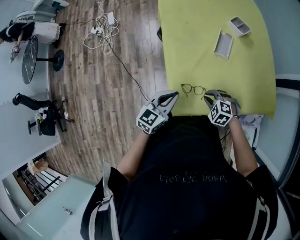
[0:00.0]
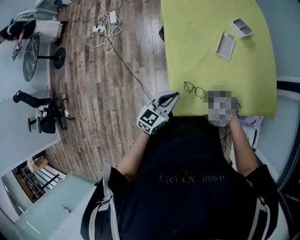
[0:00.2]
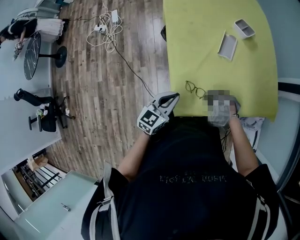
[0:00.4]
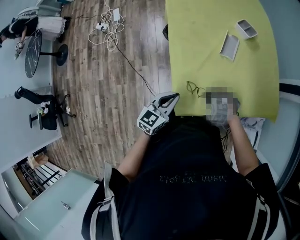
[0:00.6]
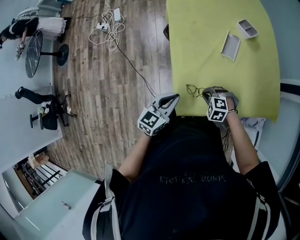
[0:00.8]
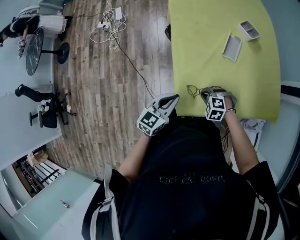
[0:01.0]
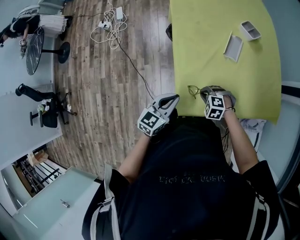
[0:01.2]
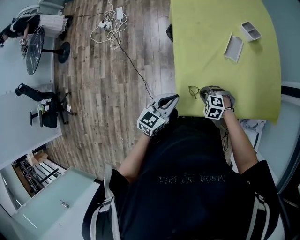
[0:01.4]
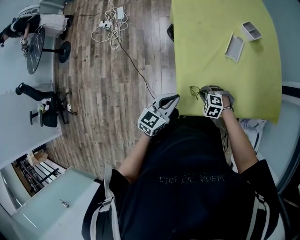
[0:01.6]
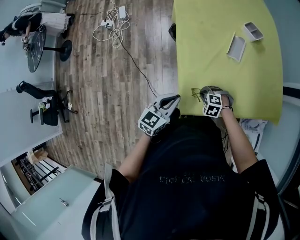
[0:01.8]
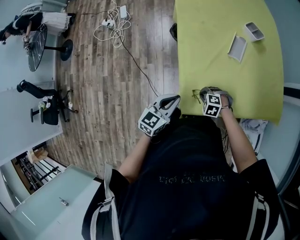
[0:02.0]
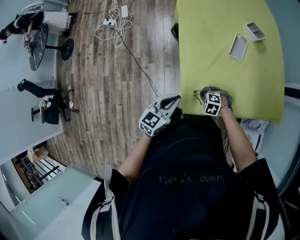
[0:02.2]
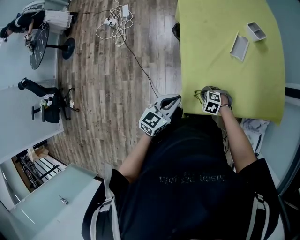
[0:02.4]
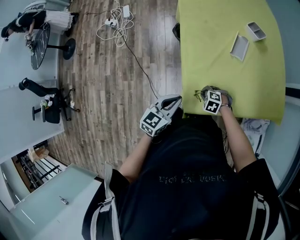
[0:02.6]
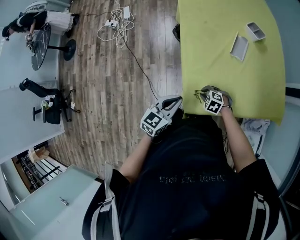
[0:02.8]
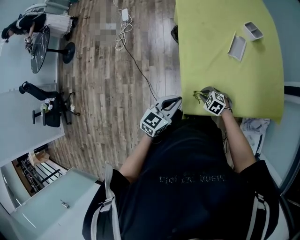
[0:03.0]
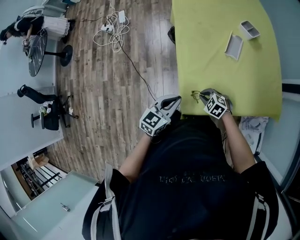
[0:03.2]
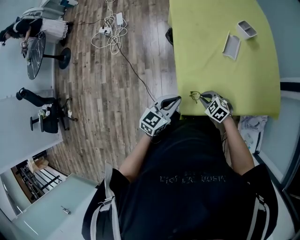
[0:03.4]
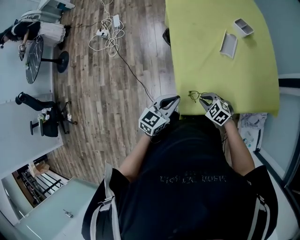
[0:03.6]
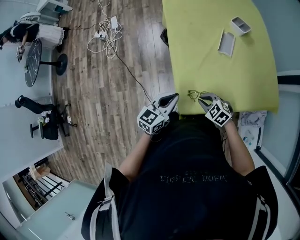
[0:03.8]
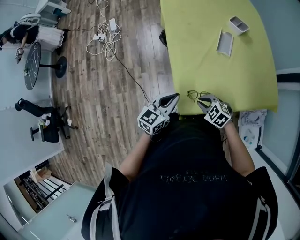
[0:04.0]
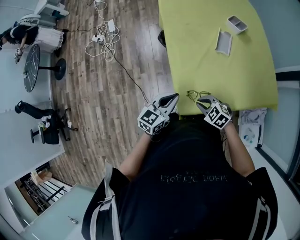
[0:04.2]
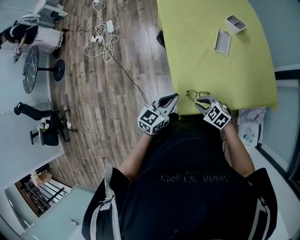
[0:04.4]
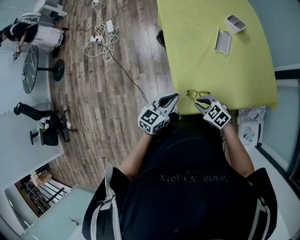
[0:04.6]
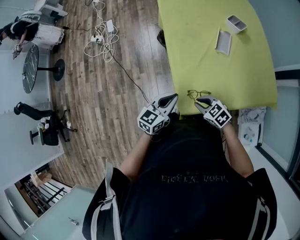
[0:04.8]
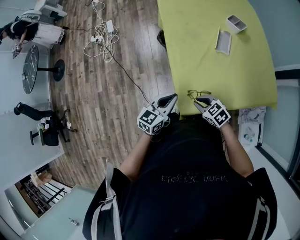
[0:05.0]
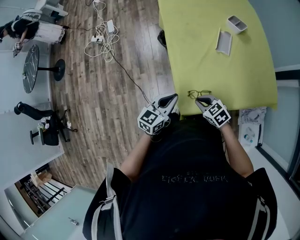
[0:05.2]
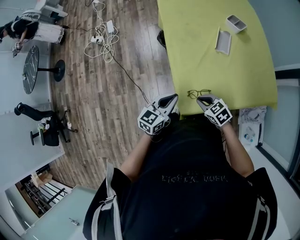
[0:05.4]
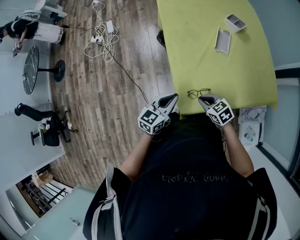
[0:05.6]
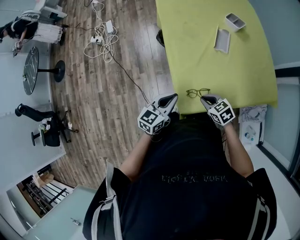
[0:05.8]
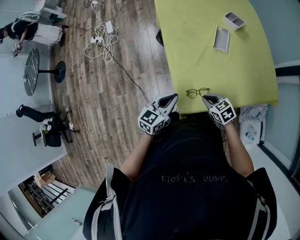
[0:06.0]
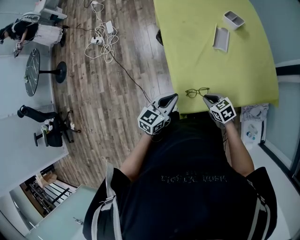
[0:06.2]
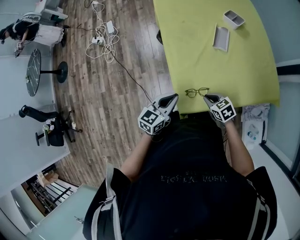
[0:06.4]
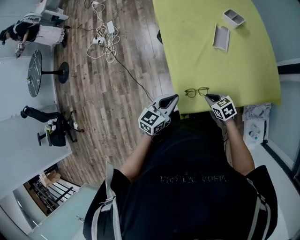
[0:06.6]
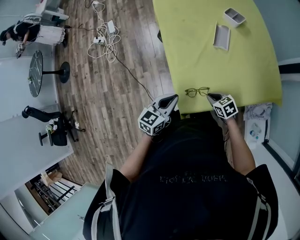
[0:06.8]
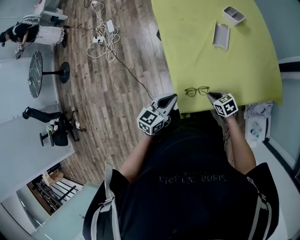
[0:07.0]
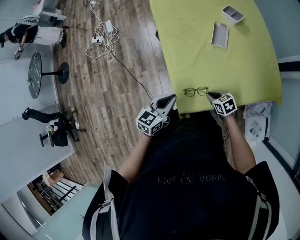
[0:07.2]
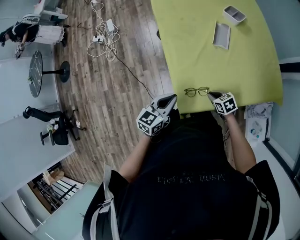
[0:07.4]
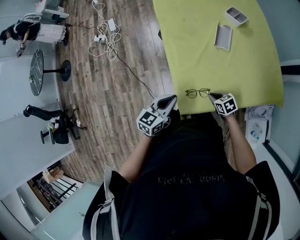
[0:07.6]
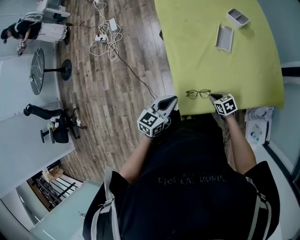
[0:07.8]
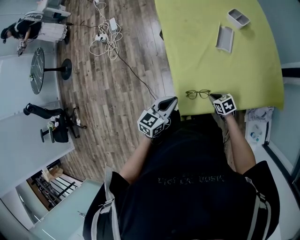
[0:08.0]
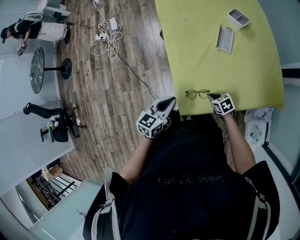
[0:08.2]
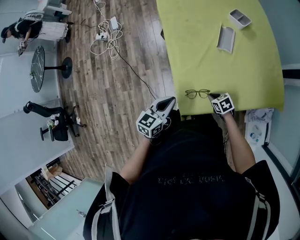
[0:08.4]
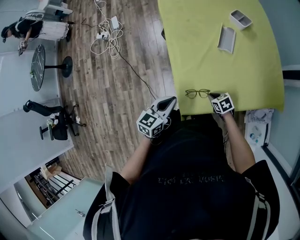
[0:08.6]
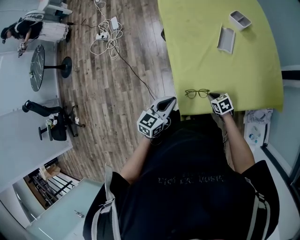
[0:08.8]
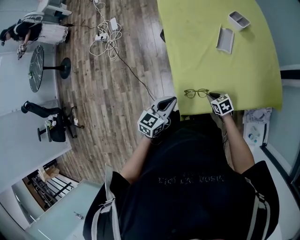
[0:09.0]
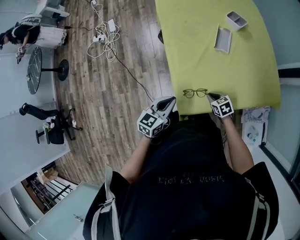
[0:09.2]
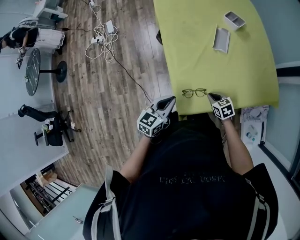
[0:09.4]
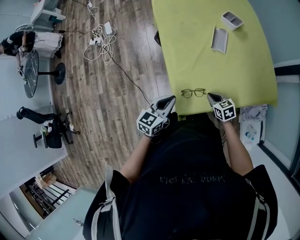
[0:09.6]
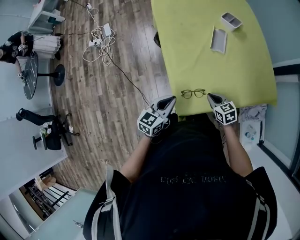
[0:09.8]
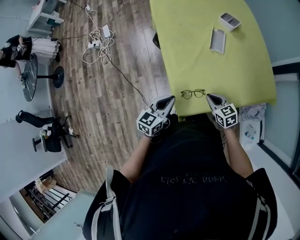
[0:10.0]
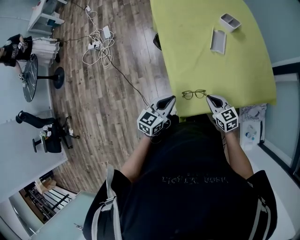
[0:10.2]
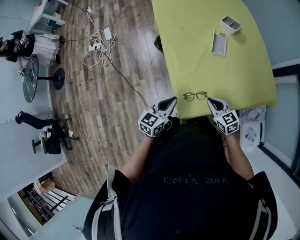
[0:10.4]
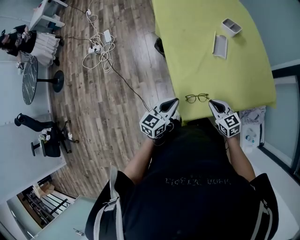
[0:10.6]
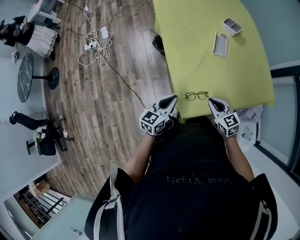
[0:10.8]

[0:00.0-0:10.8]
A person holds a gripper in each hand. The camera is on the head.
0:00.0 to 0:01.6: The right gripper moves to the left and downward, approximately 10 cm.
0:01.6 to 0:03.0: The grippers make only small movements.
0:03.0 to 0:04.6: The right gripper heads upward, covering some 10 cm, and changes its angle by roughly 20 degrees.
0:04.6 to 0:06.2: The right gripper heads to the right, covering approximately 5 cm, and rotates approximately 20 degrees.
0:06.2 to 0:07.8: The right gripper moves downward, some 10 cm.
0:07.8 to 0:09.2: There are only small adjustments of the grippers.
0:09.2 to 0:10.8: The right gripper moves upward, approximately 15 cm, and rotates roughly 30 degrees.

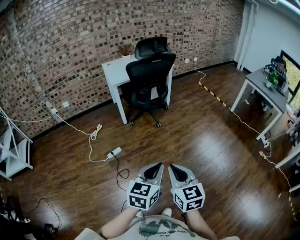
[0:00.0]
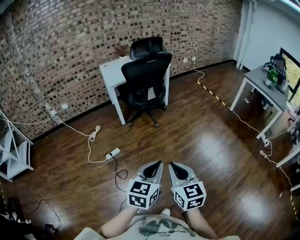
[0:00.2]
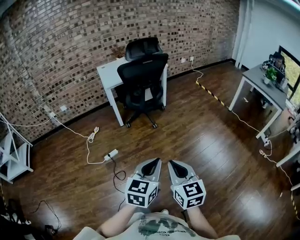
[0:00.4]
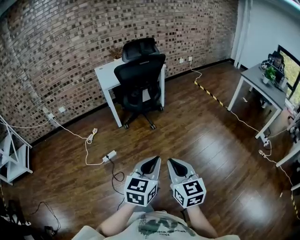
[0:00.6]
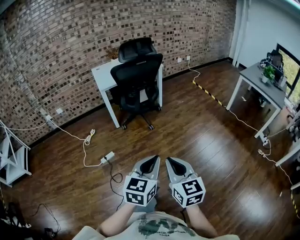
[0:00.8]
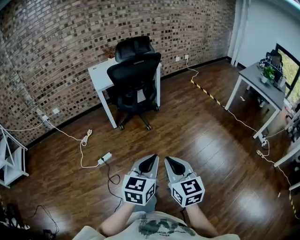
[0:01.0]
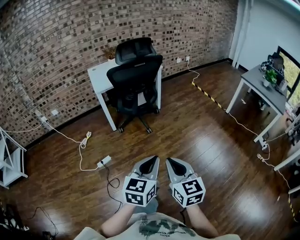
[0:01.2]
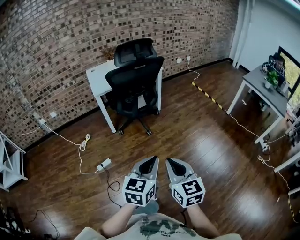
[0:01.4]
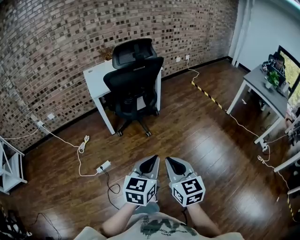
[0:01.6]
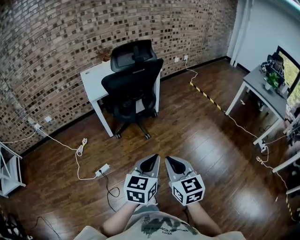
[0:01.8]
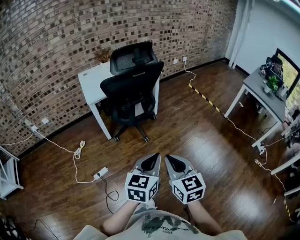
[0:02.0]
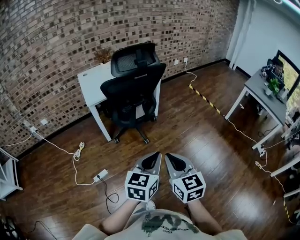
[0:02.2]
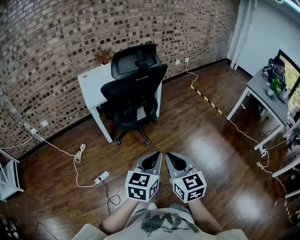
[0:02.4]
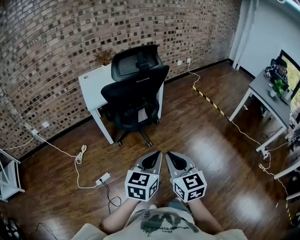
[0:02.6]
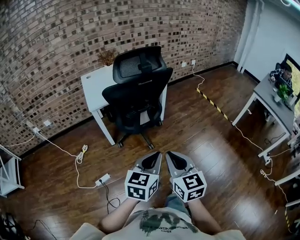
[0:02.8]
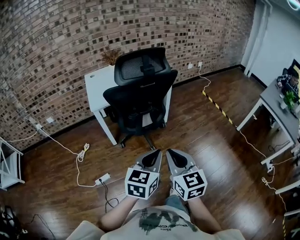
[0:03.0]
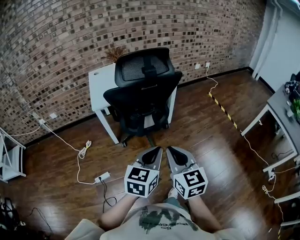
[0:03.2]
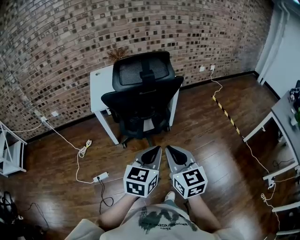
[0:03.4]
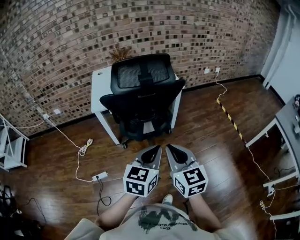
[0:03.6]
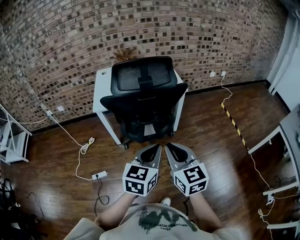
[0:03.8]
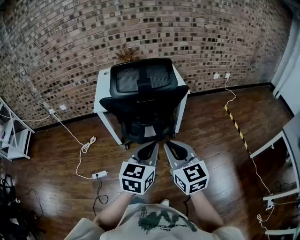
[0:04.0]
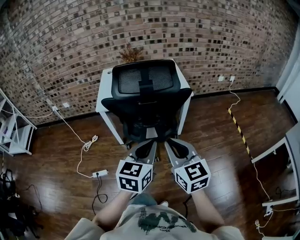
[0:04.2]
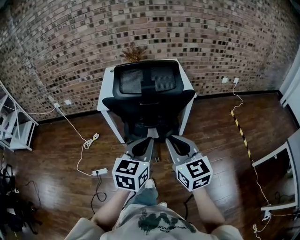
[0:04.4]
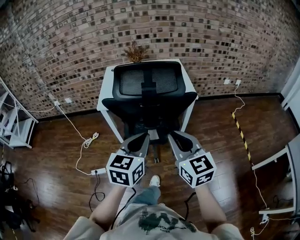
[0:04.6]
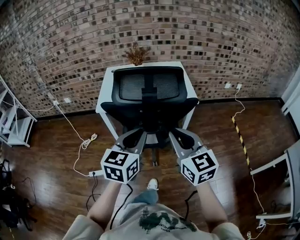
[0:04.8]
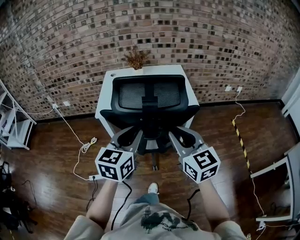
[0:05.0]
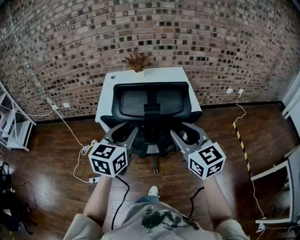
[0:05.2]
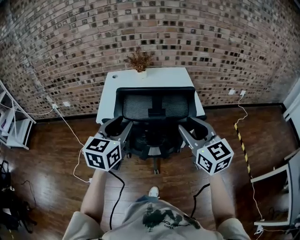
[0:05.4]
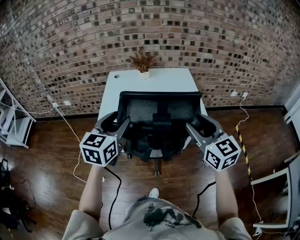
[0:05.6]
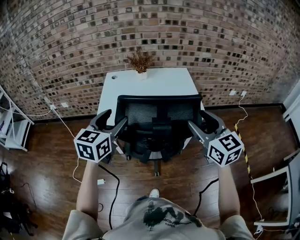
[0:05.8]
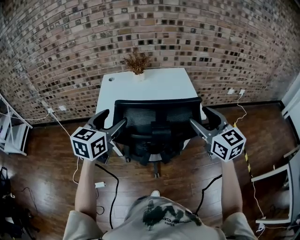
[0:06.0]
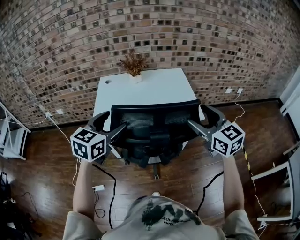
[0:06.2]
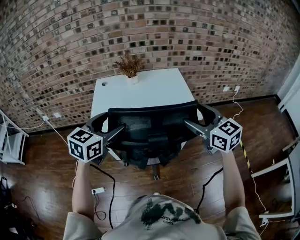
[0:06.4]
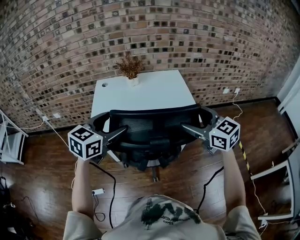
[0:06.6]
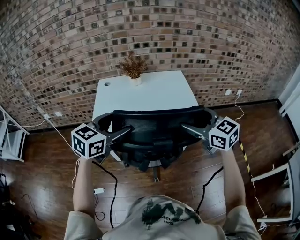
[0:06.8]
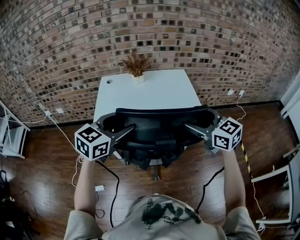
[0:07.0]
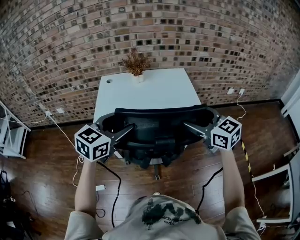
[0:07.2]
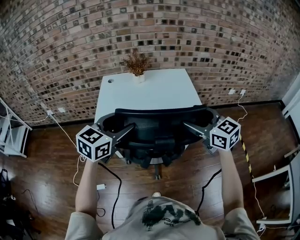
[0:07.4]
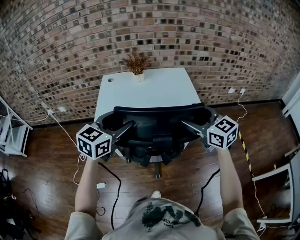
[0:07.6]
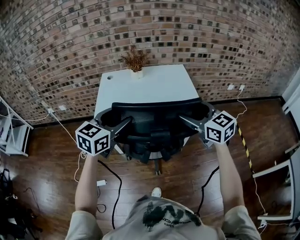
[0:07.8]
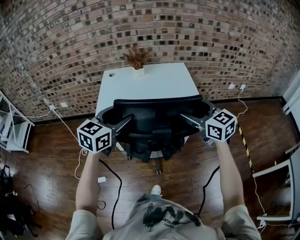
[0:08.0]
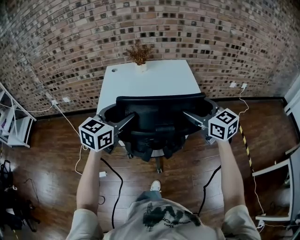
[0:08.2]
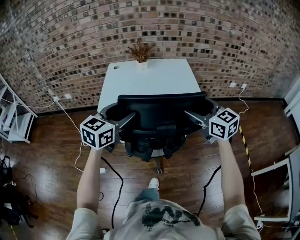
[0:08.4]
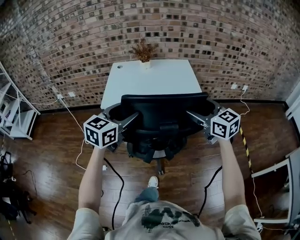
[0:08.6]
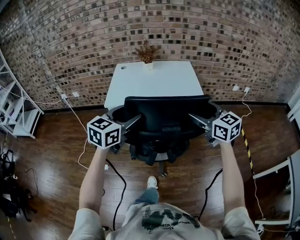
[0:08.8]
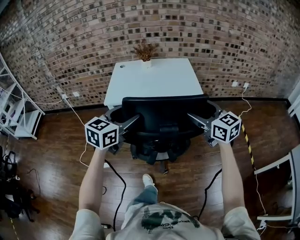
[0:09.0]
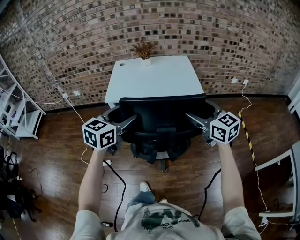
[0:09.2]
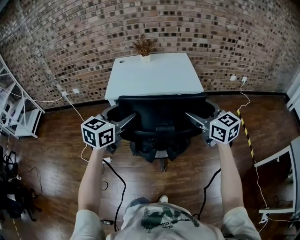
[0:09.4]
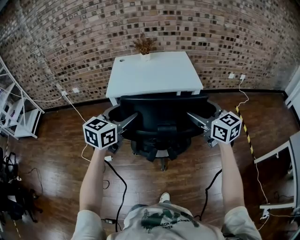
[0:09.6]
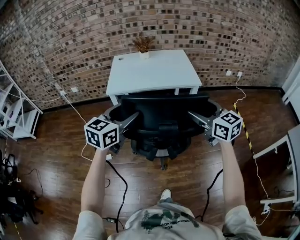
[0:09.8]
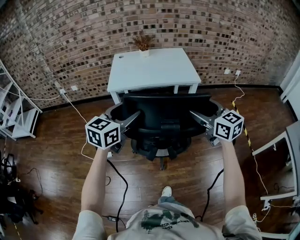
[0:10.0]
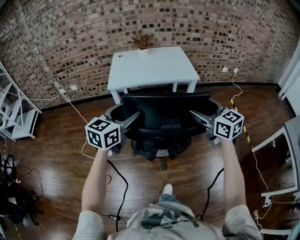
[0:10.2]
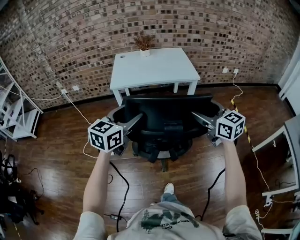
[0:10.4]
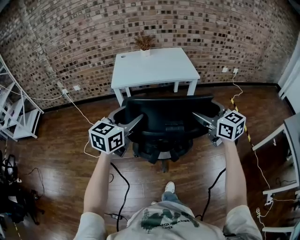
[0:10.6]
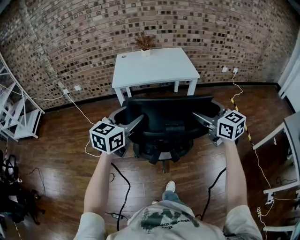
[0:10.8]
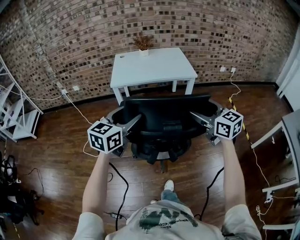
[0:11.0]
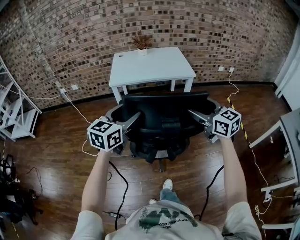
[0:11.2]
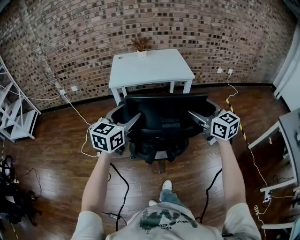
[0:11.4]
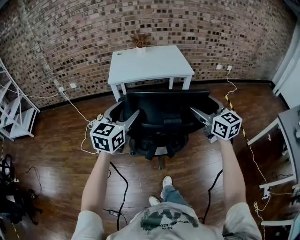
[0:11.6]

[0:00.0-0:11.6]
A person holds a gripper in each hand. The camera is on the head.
0:00.0 to 0:01.4: Both grippers travel together forward and to the right, some 20 cm.
0:01.4 to 0:02.8: The two grippers go roughly 25 cm forward.
0:02.8 to 0:04.4: The right gripper moves roughly 30 cm, and turns by approximately 30 degrees. The left gripper ends up approximately 25 cm from where it was, and changes its angle by about 30 degrees.
0:04.4 to 0:05.8: The left gripper travels forward and to the left by approximately 30 cm, and opens. Meanwhile the right gripper is displaced forward by some 25 cm, and opens its fingers.
0:05.8 to 0:07.2: The right gripper travels forward by some 5 cm; the left gripper moves approximately 5 cm, and swivels about 20 degrees.
0:07.2 to 0:08.8: The two grippers go about 15 cm backward.
0:08.8 to 0:10.2: Both grippers move backward, some 20 cm.
0:10.2 to 0:11.6: Both grippers travel together backward, roughly 10 cm.

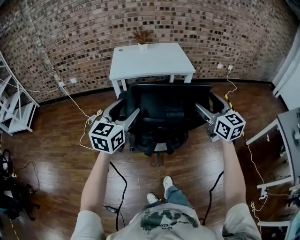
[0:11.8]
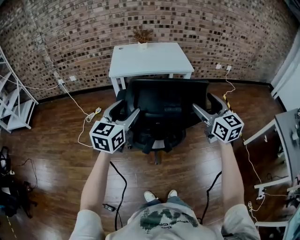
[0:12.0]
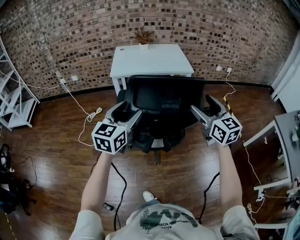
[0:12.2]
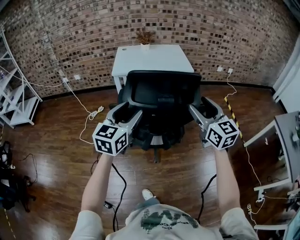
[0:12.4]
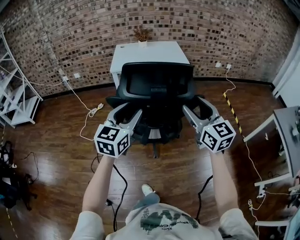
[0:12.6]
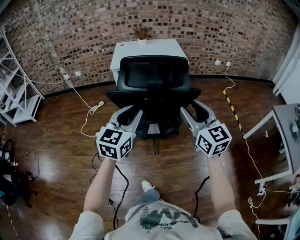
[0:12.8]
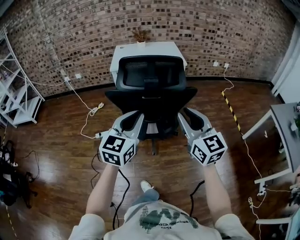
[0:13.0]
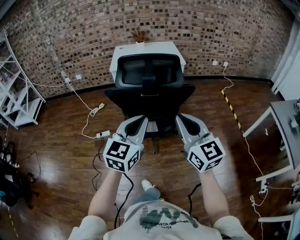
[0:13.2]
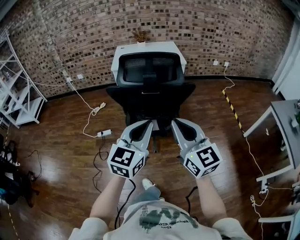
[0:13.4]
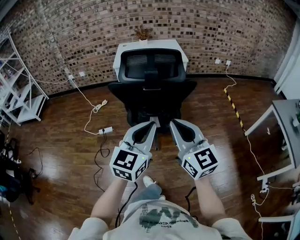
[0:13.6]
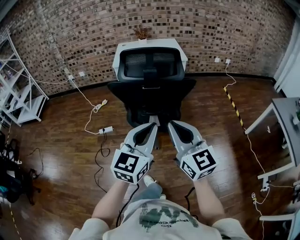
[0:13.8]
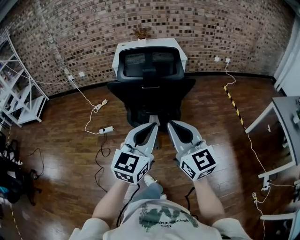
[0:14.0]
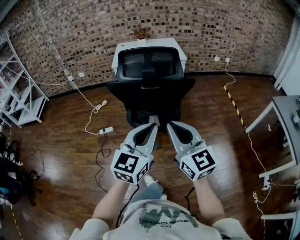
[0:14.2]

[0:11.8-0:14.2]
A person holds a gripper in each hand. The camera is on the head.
0:11.8 to 0:13.0: The right gripper goes roughly 25 cm backward, and closes its fingers. The left gripper moves backward and to the right, some 25 cm, and closes.
0:13.0 to 0:14.2: The left gripper goes roughly 15 cm backward and to the right. Meanwhile the right gripper heads backward, covering roughly 10 cm.
